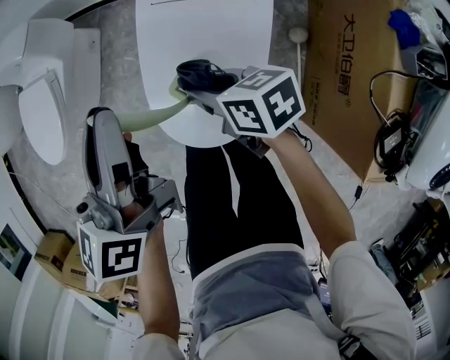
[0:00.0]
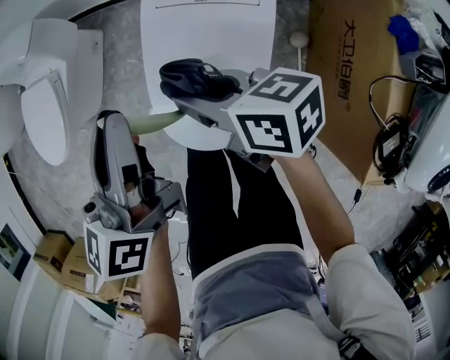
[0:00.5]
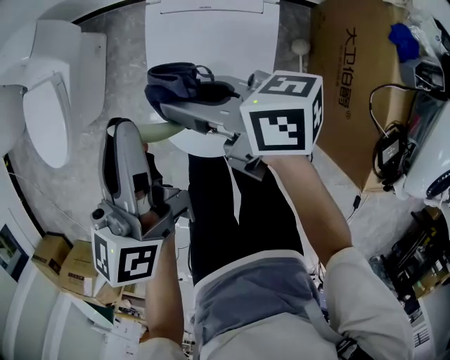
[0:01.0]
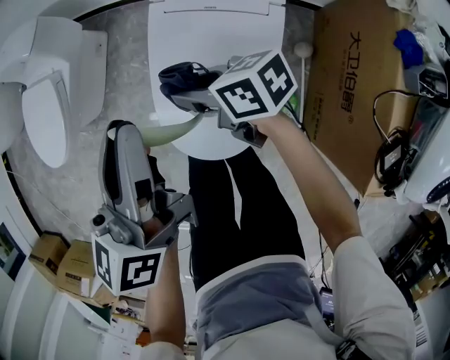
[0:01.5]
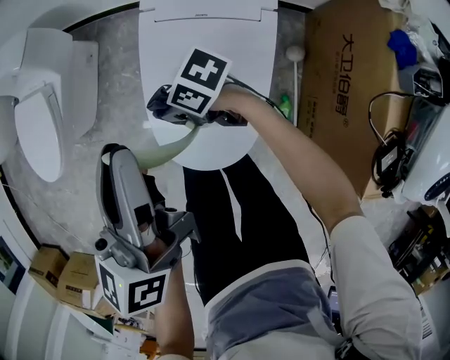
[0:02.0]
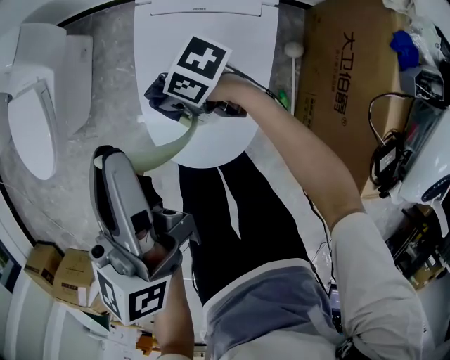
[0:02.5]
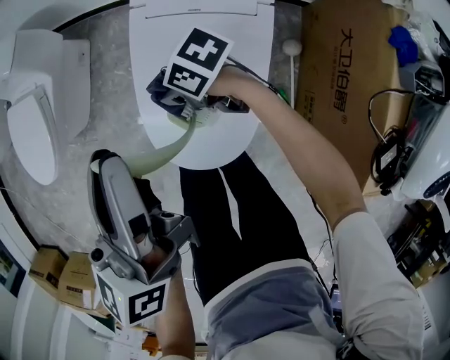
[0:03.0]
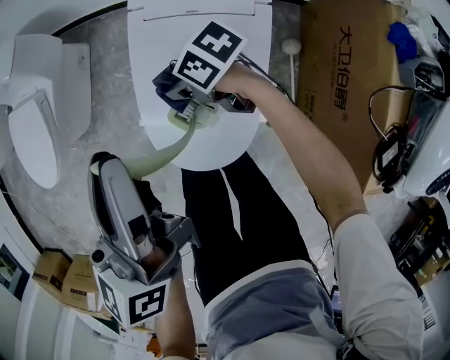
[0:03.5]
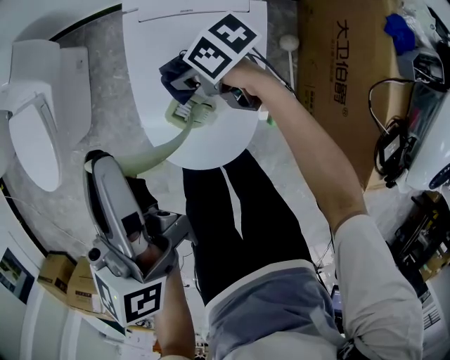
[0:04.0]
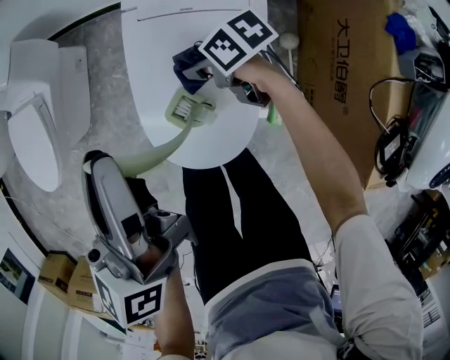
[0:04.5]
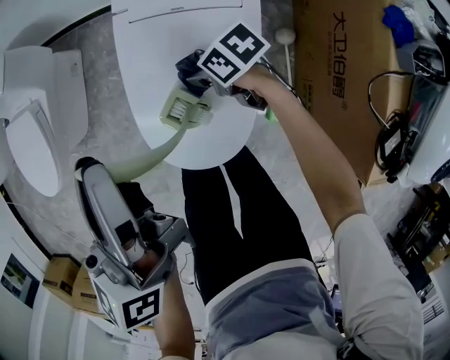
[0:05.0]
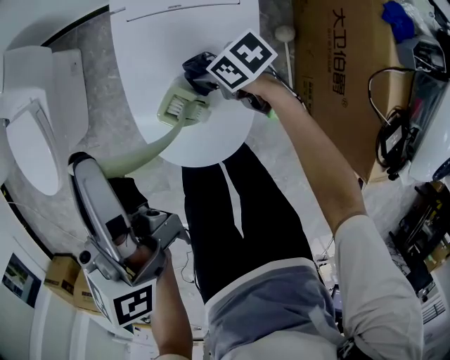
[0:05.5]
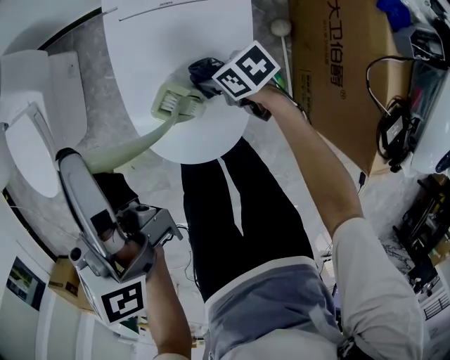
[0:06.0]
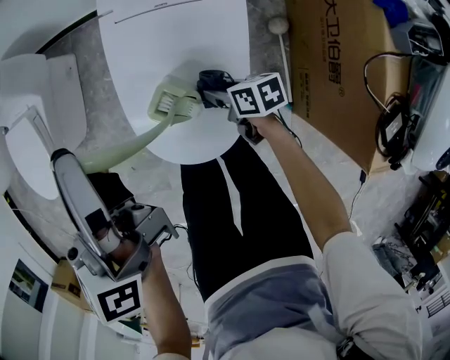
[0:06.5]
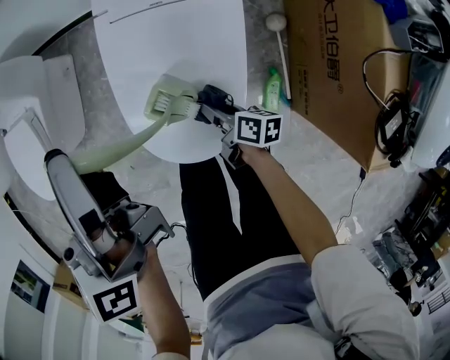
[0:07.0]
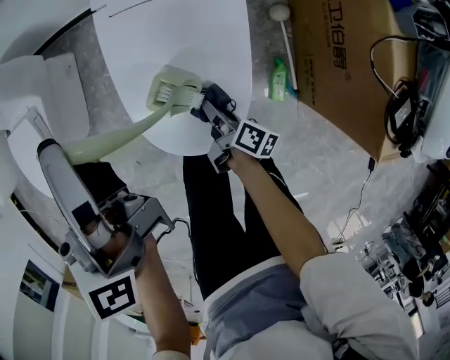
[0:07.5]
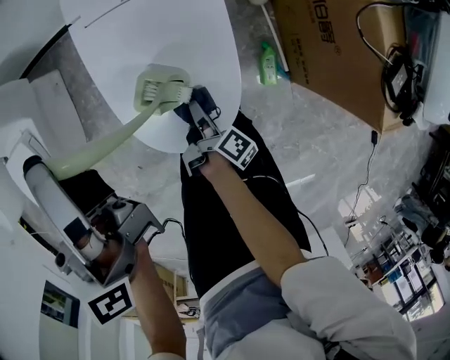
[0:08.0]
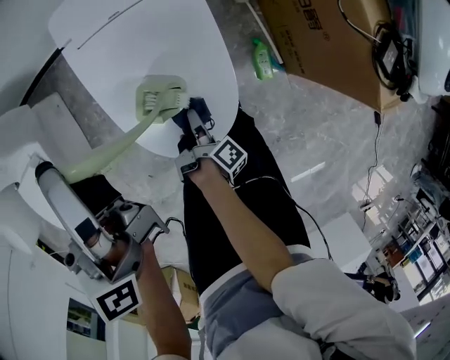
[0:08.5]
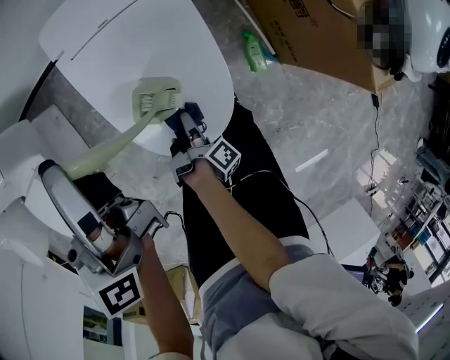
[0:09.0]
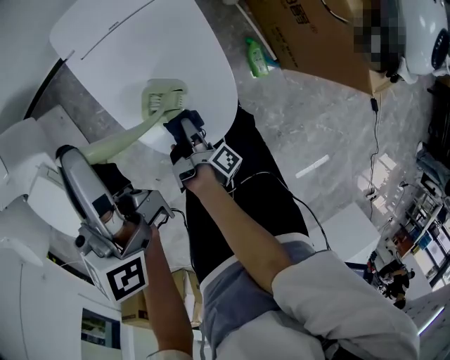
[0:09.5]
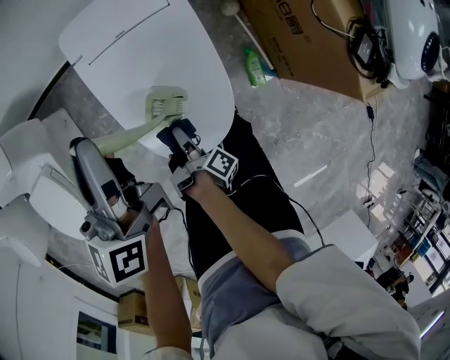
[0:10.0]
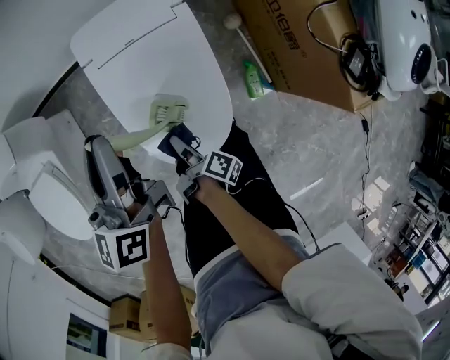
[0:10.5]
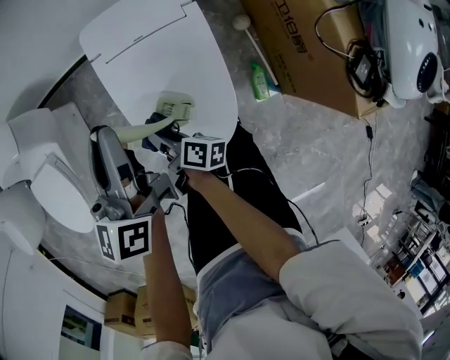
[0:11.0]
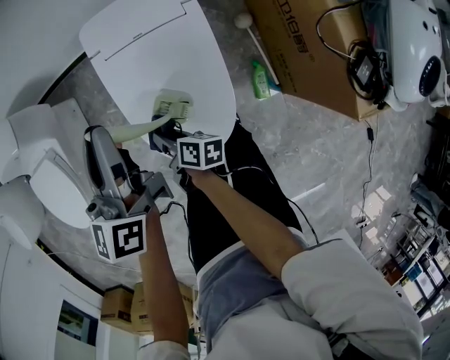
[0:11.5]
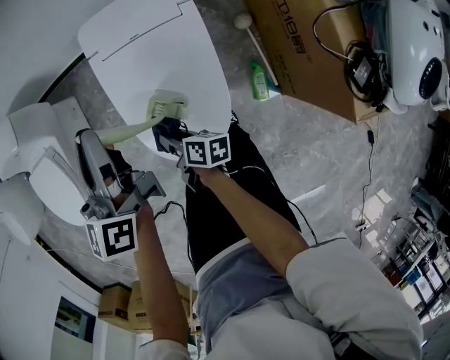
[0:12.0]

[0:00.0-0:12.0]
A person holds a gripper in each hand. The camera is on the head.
0:00.0 to 0:02.0: The right gripper shifts roughly 10 cm to the left and forward, goes upward and returns, about 10 cm each way, and rotates approximately 40 degrees.
0:02.0 to 0:04.0: The right gripper is displaced to the right by about 10 cm, and changes its angle by some 20 degrees.
0:04.0 to 0:06.0: The right gripper goes about 10 cm backward and downward.
0:06.0 to 0:08.0: The right gripper ends up roughly 10 cm from where it was, and swivels some 110 degrees.
0:08.0 to 0:10.0: The right gripper travels upward and to the left by roughly 10 cm, and rotates roughly 20 degrees.
0:10.0 to 0:12.0: The right gripper turns by approximately 70 degrees.

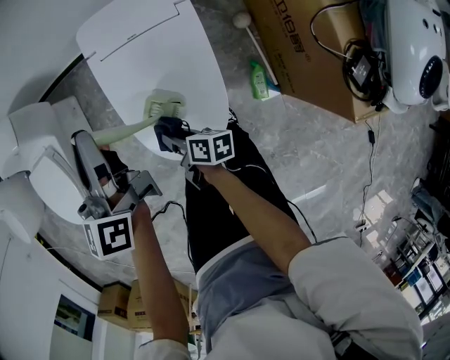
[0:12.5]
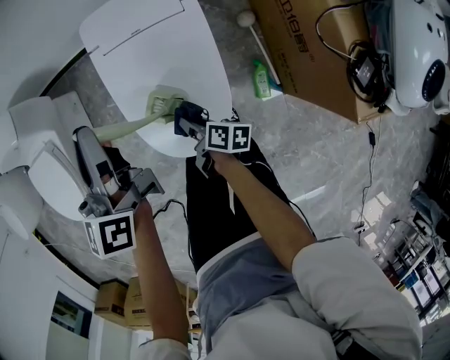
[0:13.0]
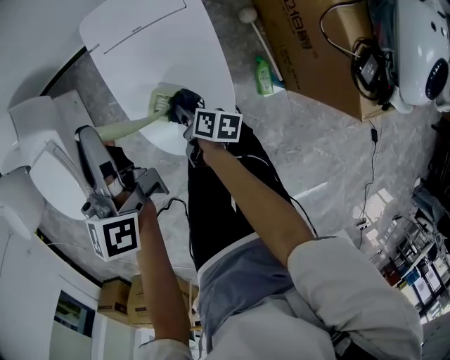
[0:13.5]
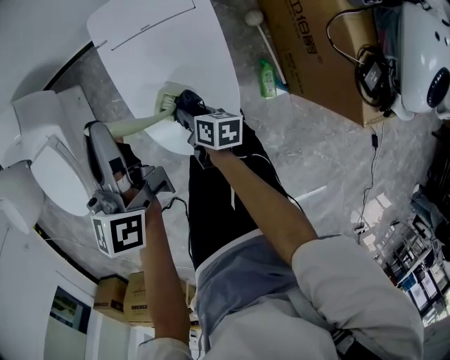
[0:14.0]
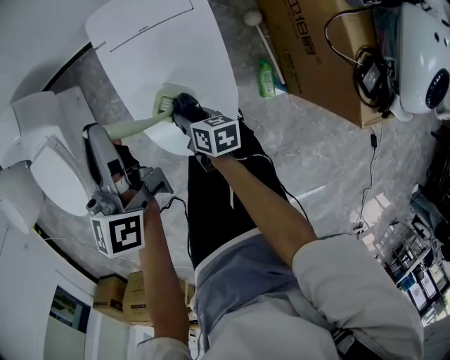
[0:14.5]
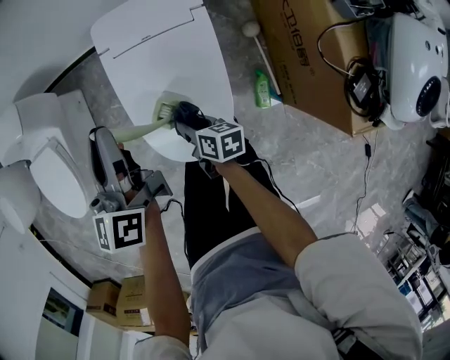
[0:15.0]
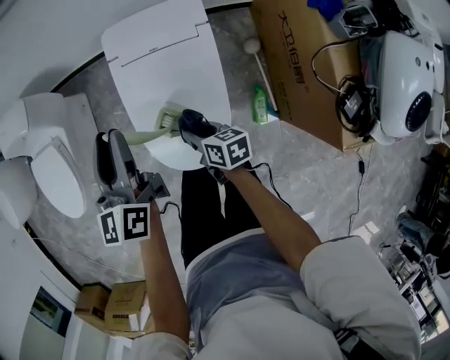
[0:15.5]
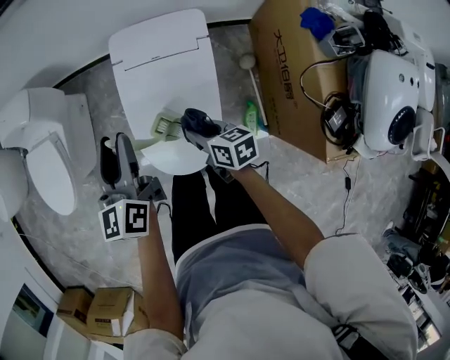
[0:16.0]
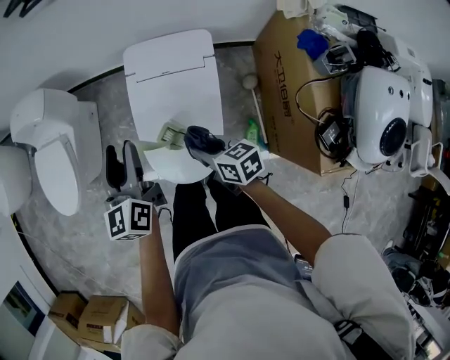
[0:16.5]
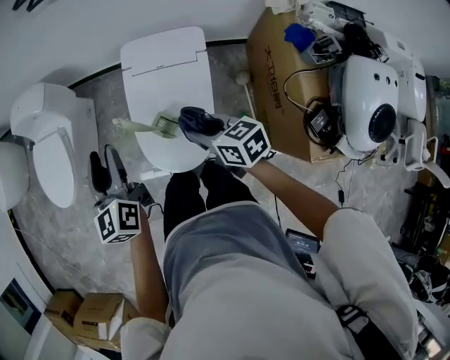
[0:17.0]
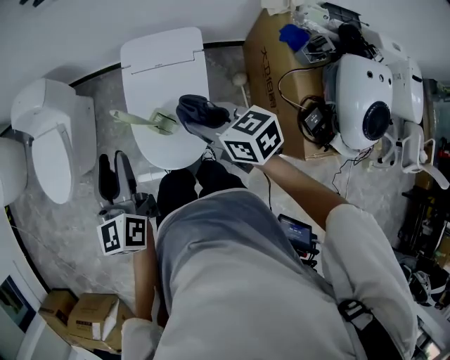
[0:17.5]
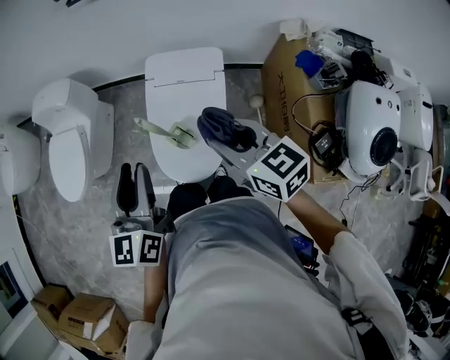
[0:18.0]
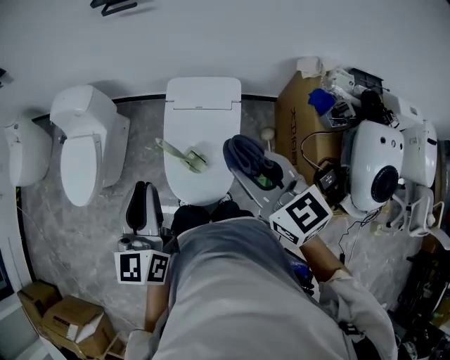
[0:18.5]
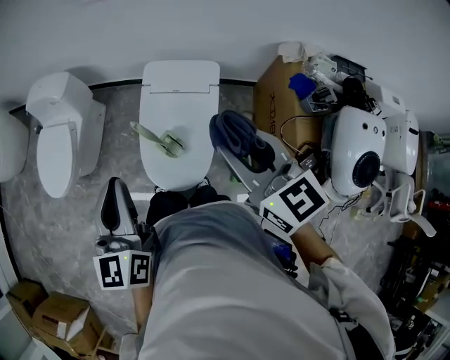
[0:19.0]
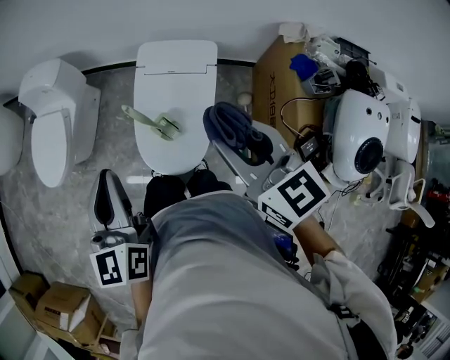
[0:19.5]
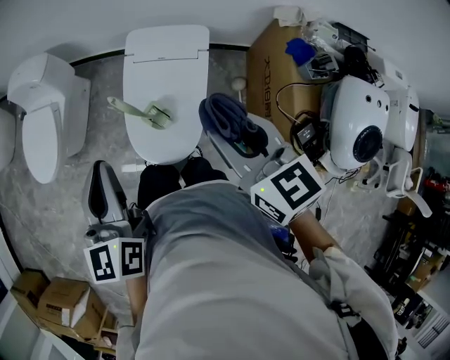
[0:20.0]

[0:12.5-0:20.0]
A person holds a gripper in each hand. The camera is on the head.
0:12.5 to 0:14.5: The right gripper ends up approximately 5 cm from where it was, and turns by about 20 degrees.
0:14.5 to 0:16.5: The left gripper moves roughly 5 cm; the right gripper goes roughly 20 cm upward, and rotates about 30 degrees.
0:16.5 to 0:18.0: The left gripper travels backward and upward by approximately 20 cm. The right gripper shifts approximately 25 cm upward, and turns by roughly 30 degrees.

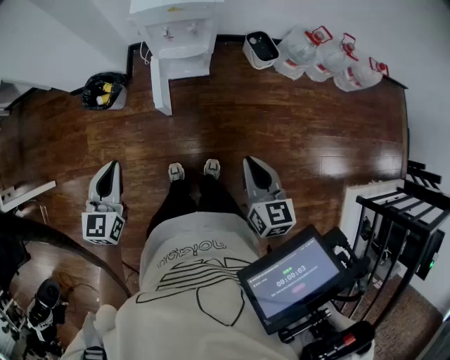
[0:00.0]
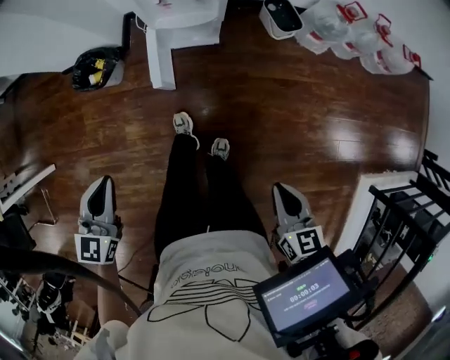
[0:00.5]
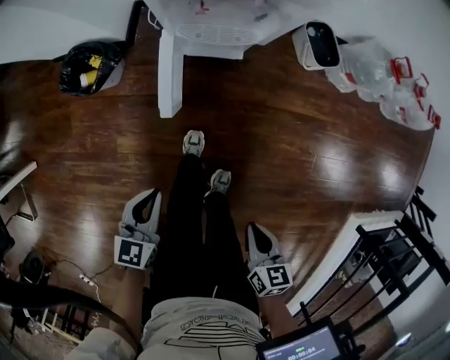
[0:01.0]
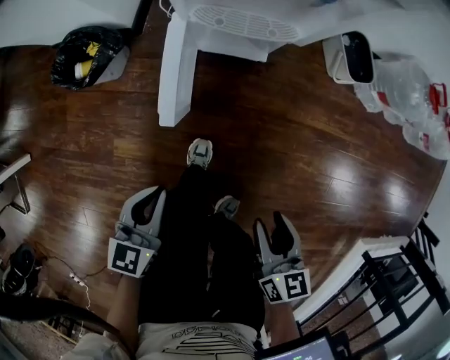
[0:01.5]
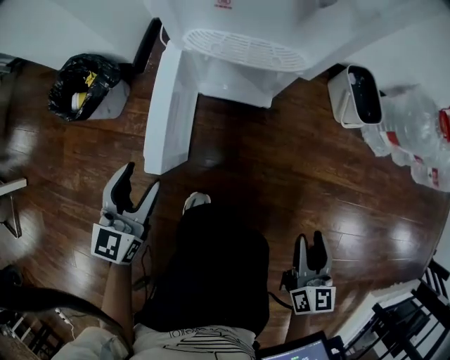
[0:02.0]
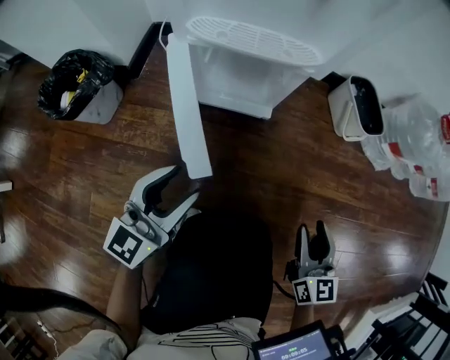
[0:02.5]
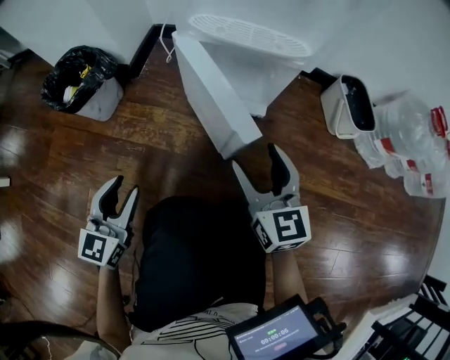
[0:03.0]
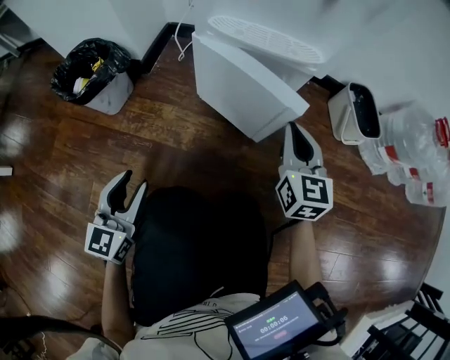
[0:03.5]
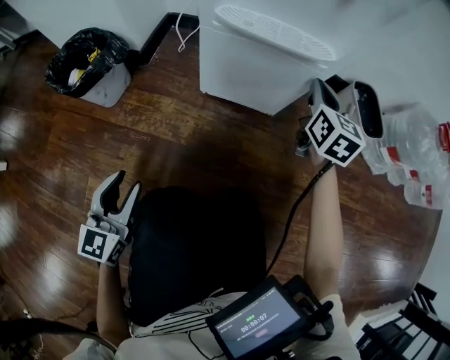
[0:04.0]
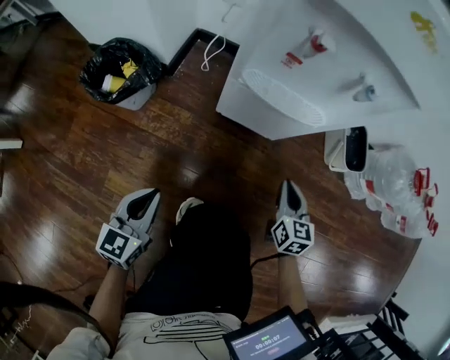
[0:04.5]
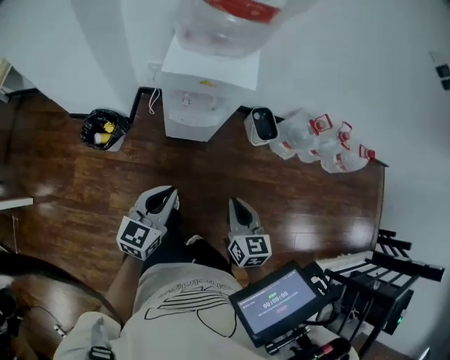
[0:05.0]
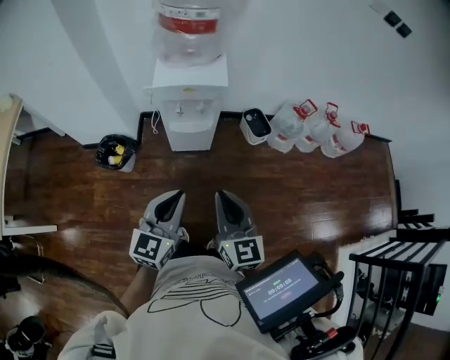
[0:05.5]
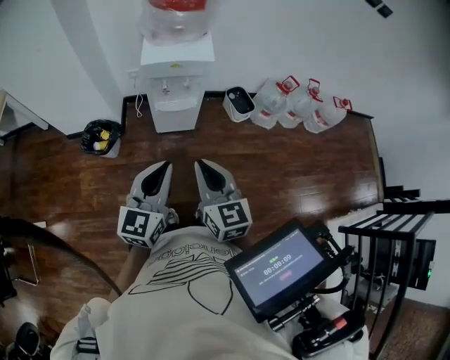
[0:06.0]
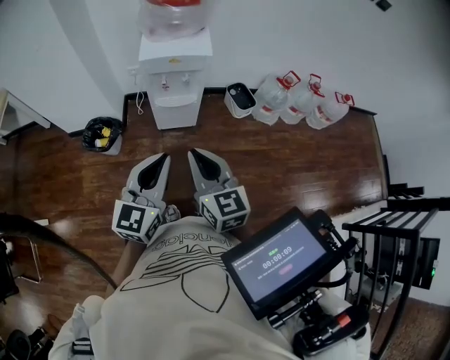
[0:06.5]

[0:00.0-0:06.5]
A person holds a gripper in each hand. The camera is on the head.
0:00.0 to 0:02.0: Both grippers travel together downward and forward, about 50 cm. The left gripper opens up, while the right gripper opens up.
0:02.0 to 0:04.5: The left gripper moves backward, roughly 5 cm, travels to the right and back again, approximately 10 cm each way, and closes. The right gripper is displaced forward and to the left by some 20 cm, and closes up.
0:04.5 to 0:06.5: The left gripper moves upward, approximately 60 cm, and swivels some 30 degrees. Meanwhile the right gripper goes about 70 cm upward and backward, and changes its angle by about 20 degrees.

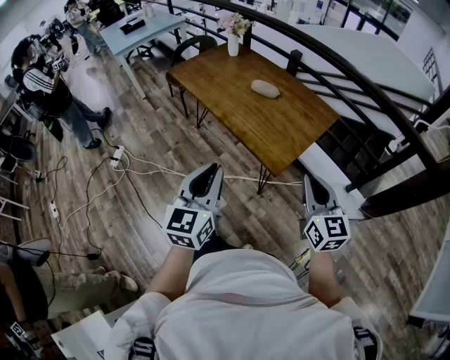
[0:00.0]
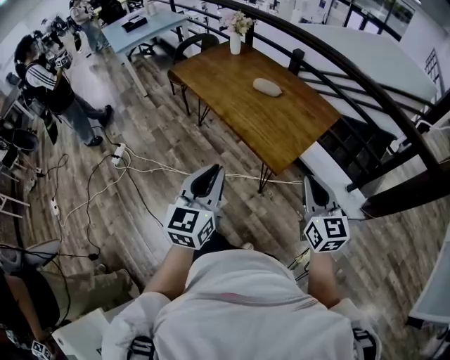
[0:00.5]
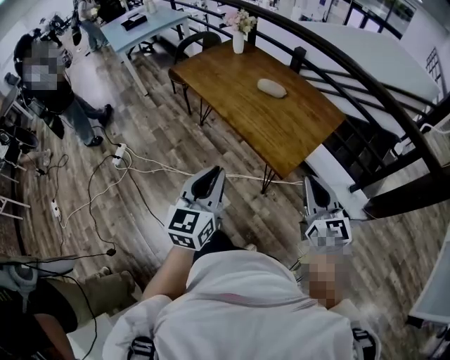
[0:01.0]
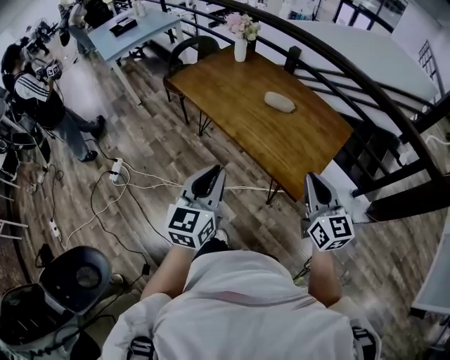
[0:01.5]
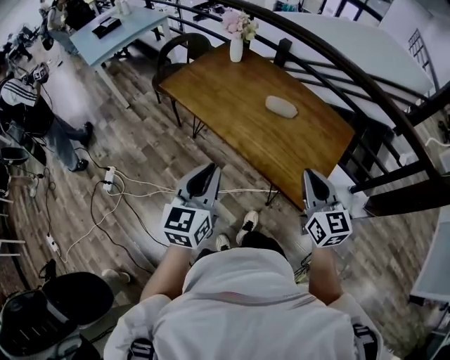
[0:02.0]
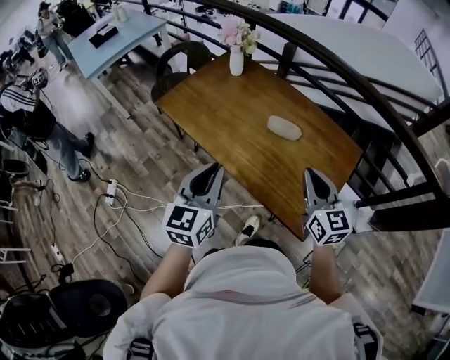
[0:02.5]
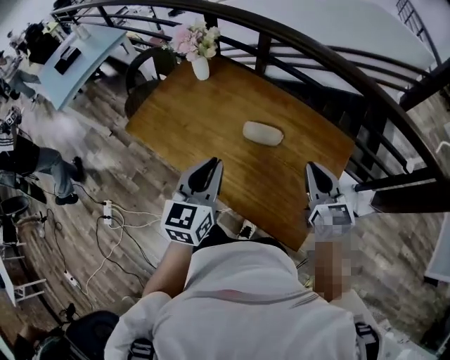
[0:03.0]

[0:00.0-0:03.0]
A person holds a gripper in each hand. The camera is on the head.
0:00.0 to 0:01.5: Both grippers move forward and to the left, about 15 cm.
0:01.5 to 0:03.0: Both grippers travel together forward, some 30 cm.
